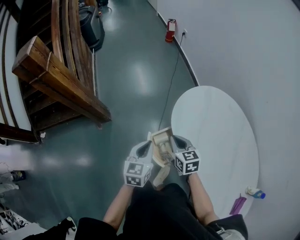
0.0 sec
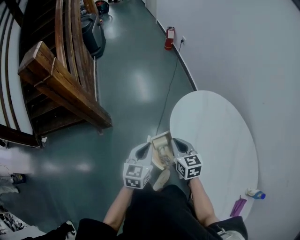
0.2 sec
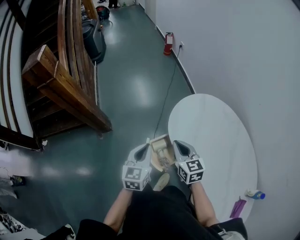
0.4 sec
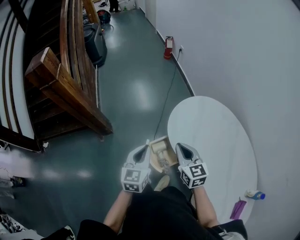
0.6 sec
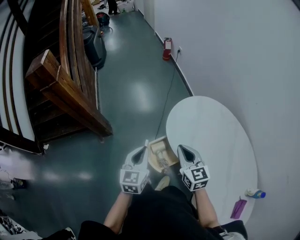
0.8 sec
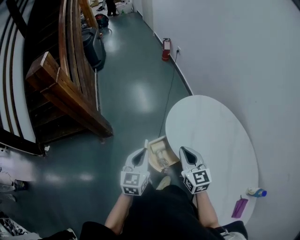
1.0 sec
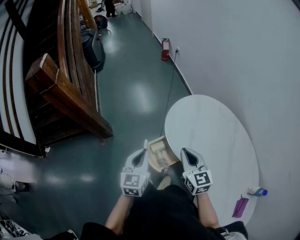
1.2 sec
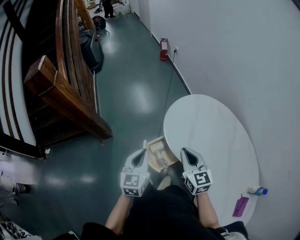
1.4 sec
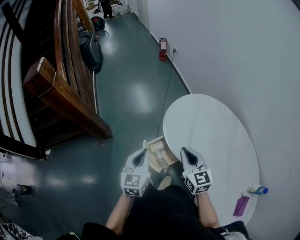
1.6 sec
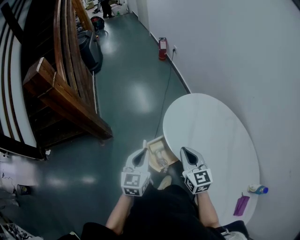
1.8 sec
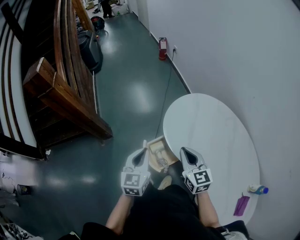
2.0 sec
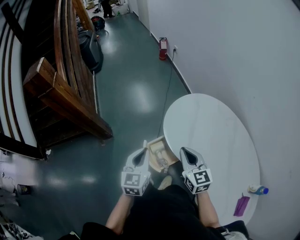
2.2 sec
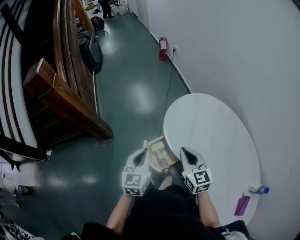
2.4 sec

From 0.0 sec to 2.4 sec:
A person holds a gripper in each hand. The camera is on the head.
From 0.0 sec to 1.2 sec: The left gripper heads upward and backward, covering roughly 10 cm. Meanwhile the right gripper goes approximately 15 cm upward, backward and to the right, and swivels about 20 degrees.
From 1.2 sec to 2.4 sec: There are only small adjustments of the grippers.

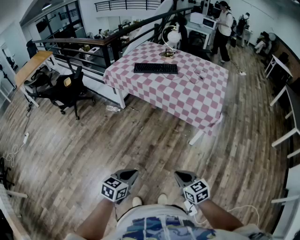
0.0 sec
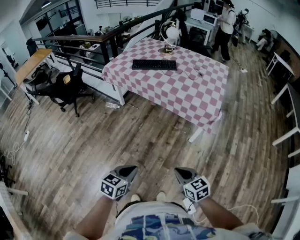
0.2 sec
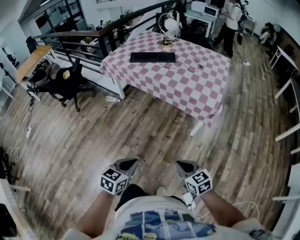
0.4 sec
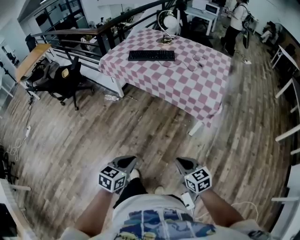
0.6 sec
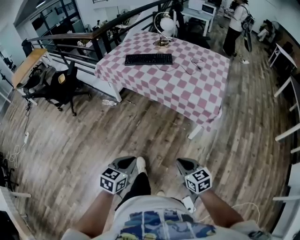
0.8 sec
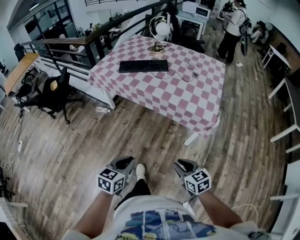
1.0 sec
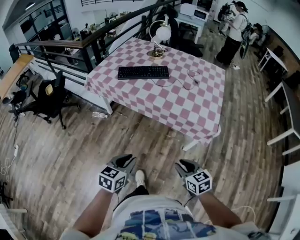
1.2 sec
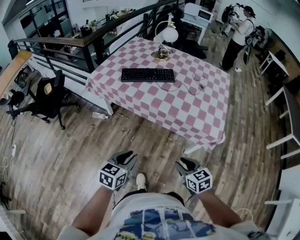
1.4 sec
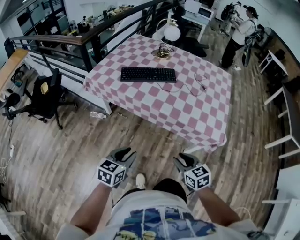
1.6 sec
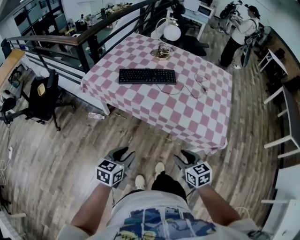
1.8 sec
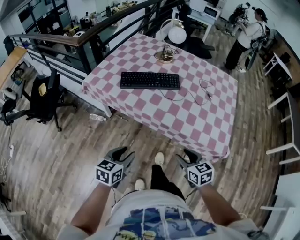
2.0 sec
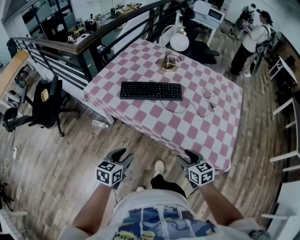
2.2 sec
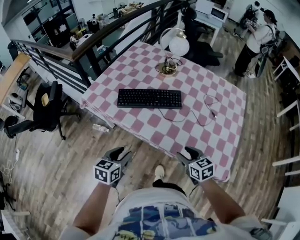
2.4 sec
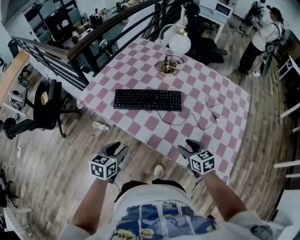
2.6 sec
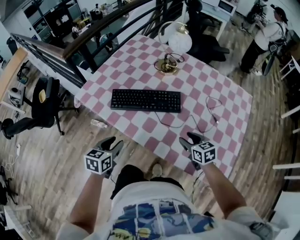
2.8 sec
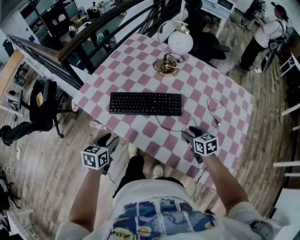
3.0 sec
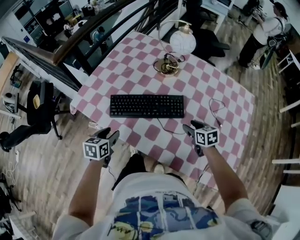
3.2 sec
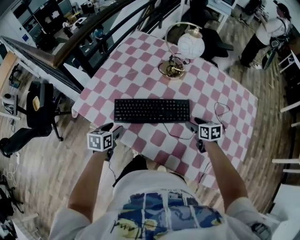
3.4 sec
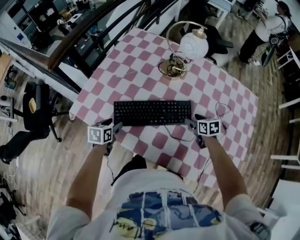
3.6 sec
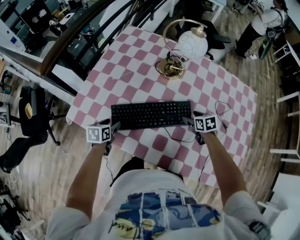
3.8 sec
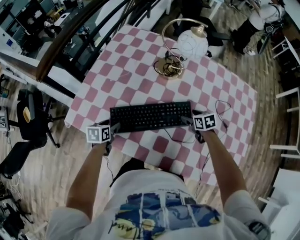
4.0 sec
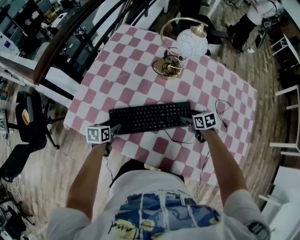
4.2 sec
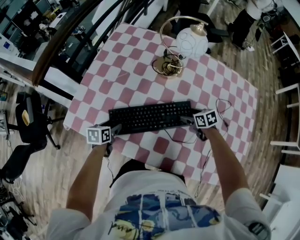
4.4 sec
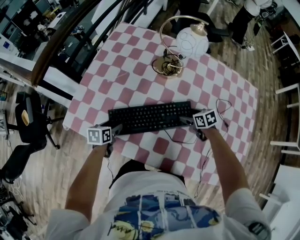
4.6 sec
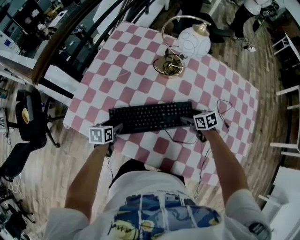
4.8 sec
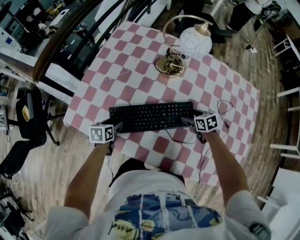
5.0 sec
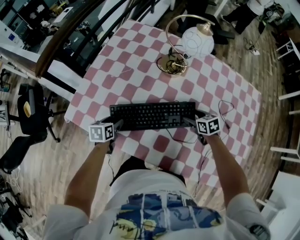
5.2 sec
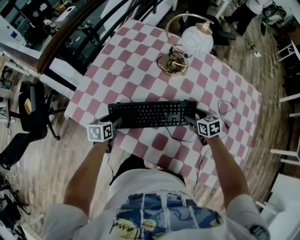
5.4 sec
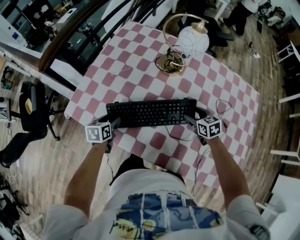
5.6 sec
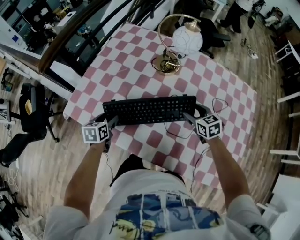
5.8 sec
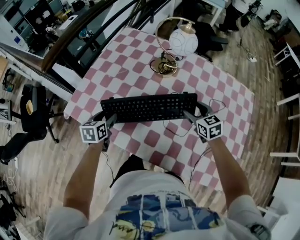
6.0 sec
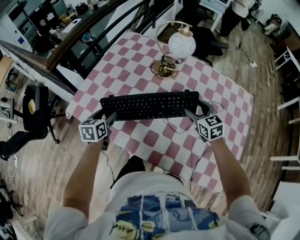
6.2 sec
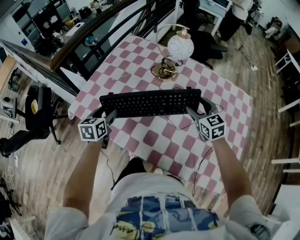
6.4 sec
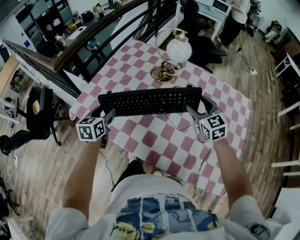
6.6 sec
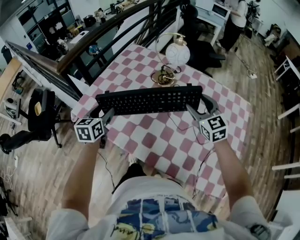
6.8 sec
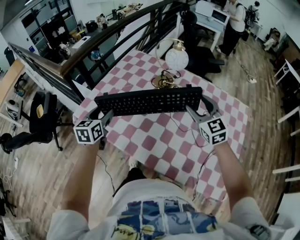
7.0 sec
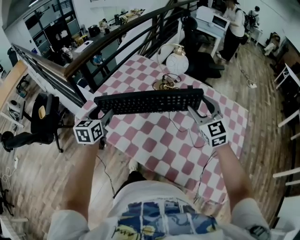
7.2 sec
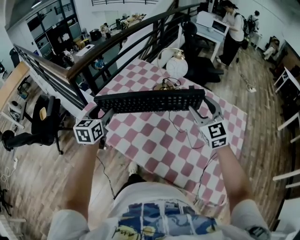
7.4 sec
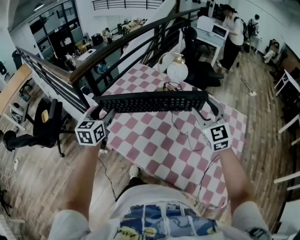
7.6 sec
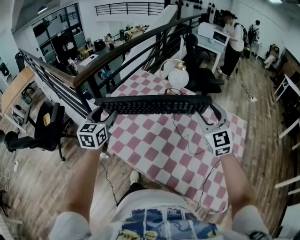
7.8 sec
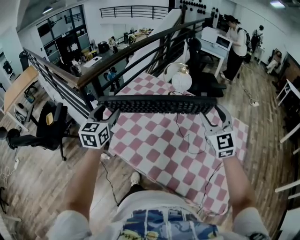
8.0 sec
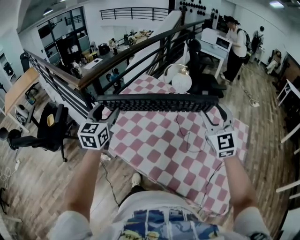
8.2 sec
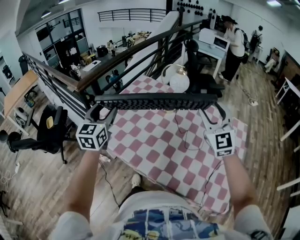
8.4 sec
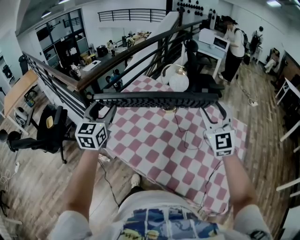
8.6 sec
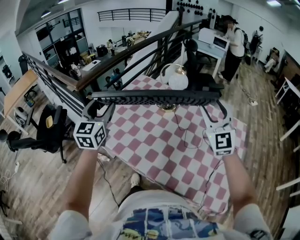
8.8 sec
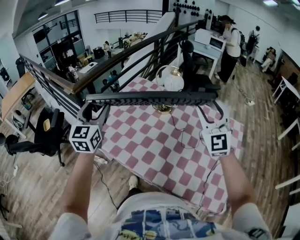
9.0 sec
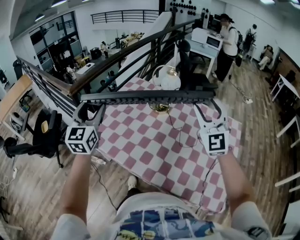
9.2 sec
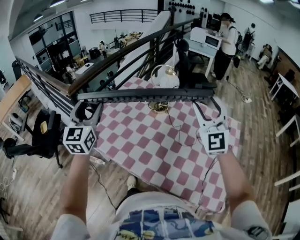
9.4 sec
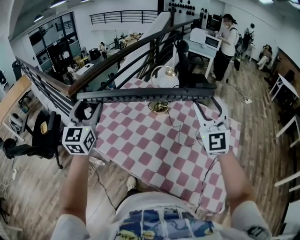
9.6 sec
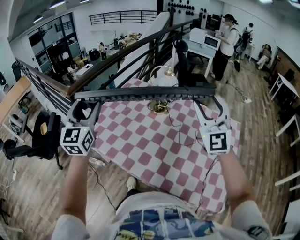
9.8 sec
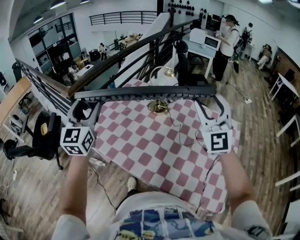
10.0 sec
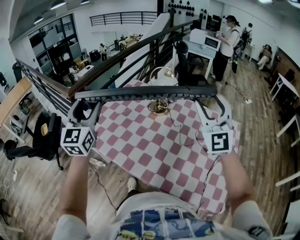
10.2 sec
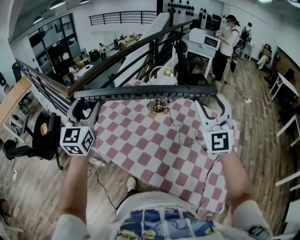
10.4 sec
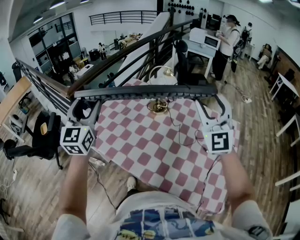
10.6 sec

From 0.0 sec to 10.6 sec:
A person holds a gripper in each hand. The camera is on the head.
From 0.0 sec to 1.6 sec: The two grippers go about 40 cm forward. The right gripper opens up.
From 1.6 sec to 3.0 sec: The two grippers travel together, forward, some 50 cm. The left gripper swivels approximately 20 degrees.
From 3.0 sec to 4.6 sec: The two grippers go approximately 25 cm forward and downward. The left gripper turns by some 20 degrees, and opens up. Meanwhile the right gripper opens up.
From 4.6 sec to 6.0 sec: Both grippers travel together upward, approximately 10 cm. The right gripper turns by approximately 30 degrees.
From 6.0 sec to 7.6 sec: Both grippers travel together upward, about 25 cm. The right gripper rotates some 40 degrees. Meanwhile the left gripper turns by roughly 30 degrees.
From 7.6 sec to 9.0 sec: The two grippers go some 10 cm upward. The left gripper rotates some 20 degrees.
From 9.0 sec to 10.6 sec: The left gripper is displaced upward by some 5 cm.

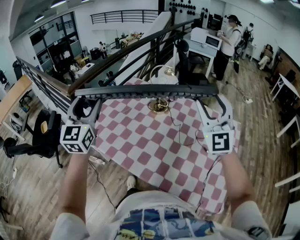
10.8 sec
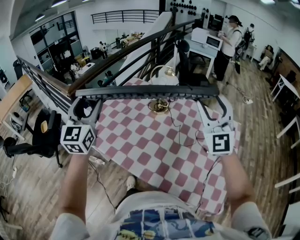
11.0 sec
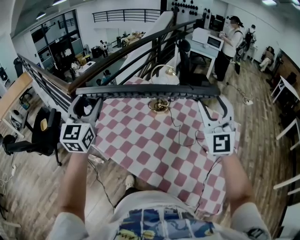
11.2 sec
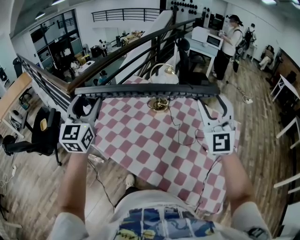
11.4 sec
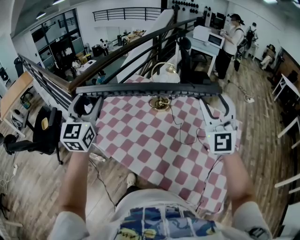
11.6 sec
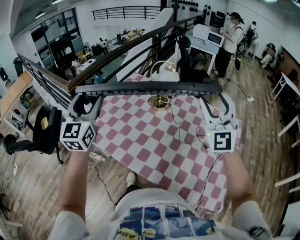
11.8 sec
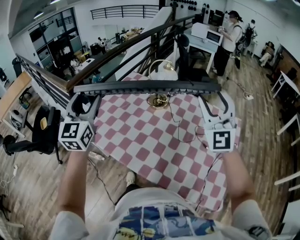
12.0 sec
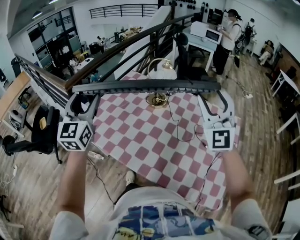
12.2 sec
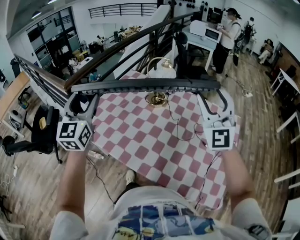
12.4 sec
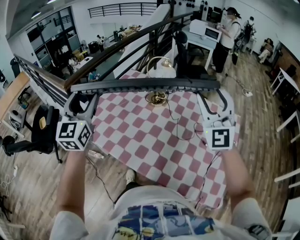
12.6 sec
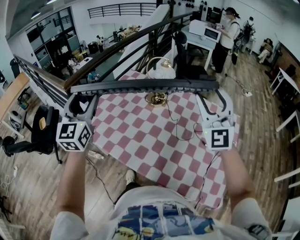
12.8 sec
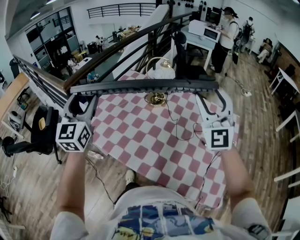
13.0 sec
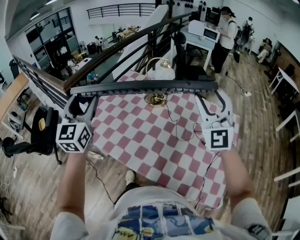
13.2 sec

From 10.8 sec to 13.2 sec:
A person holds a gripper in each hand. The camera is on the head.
From 10.8 sec to 12.0 sec: The two grippers keep their place.
From 12.0 sec to 13.2 sec: Neither gripper changes place.

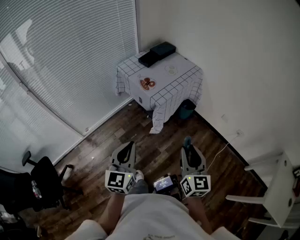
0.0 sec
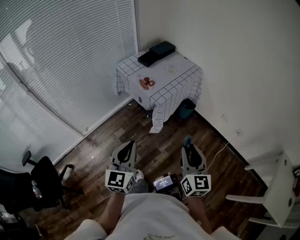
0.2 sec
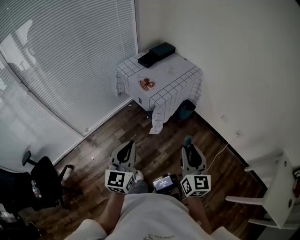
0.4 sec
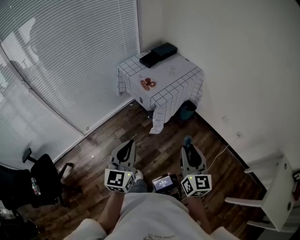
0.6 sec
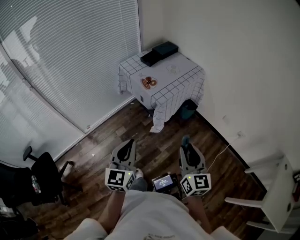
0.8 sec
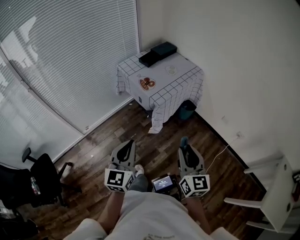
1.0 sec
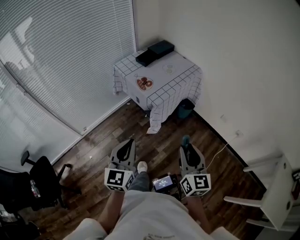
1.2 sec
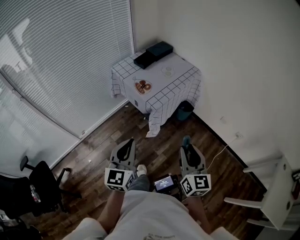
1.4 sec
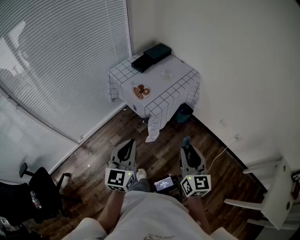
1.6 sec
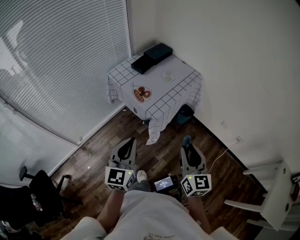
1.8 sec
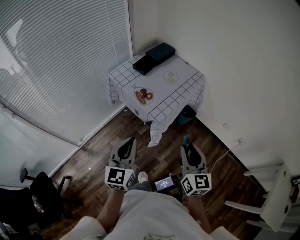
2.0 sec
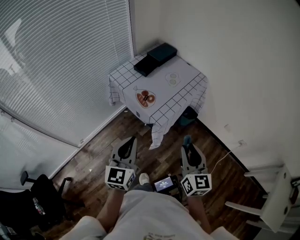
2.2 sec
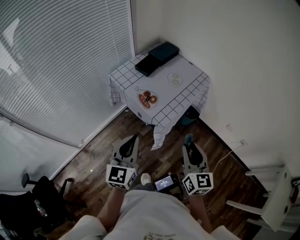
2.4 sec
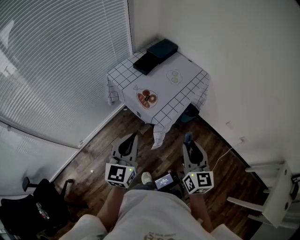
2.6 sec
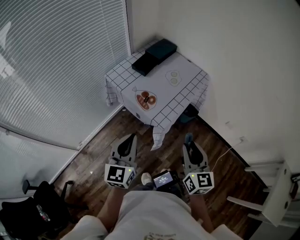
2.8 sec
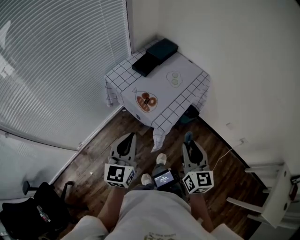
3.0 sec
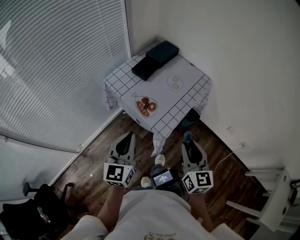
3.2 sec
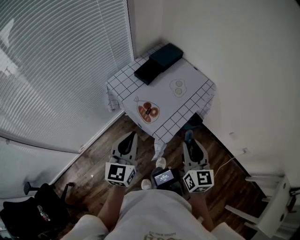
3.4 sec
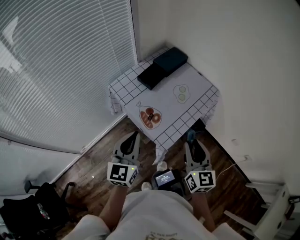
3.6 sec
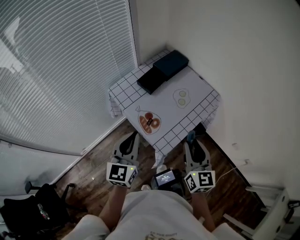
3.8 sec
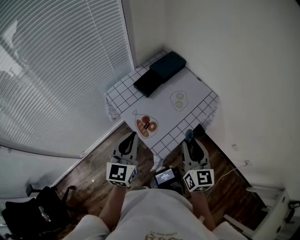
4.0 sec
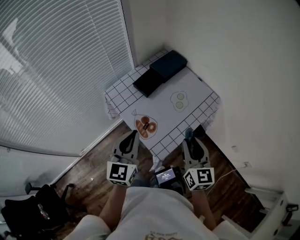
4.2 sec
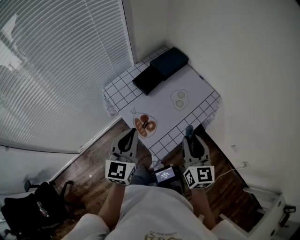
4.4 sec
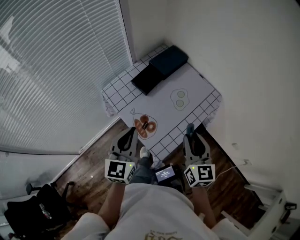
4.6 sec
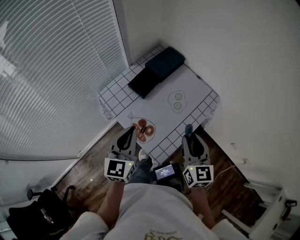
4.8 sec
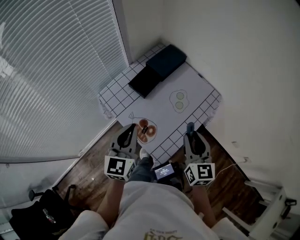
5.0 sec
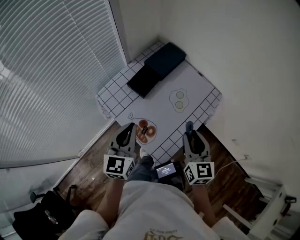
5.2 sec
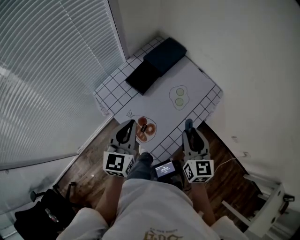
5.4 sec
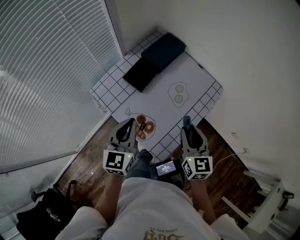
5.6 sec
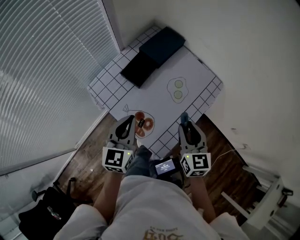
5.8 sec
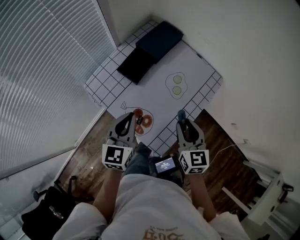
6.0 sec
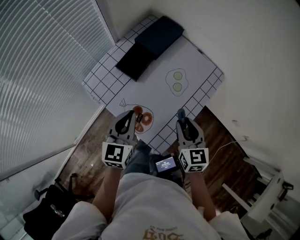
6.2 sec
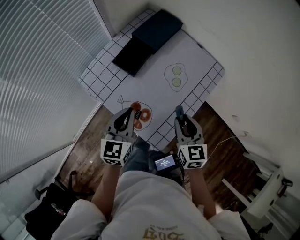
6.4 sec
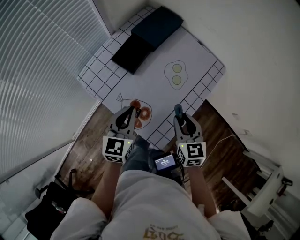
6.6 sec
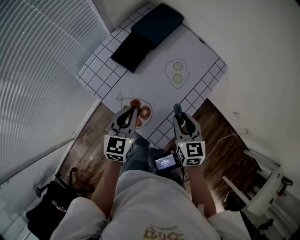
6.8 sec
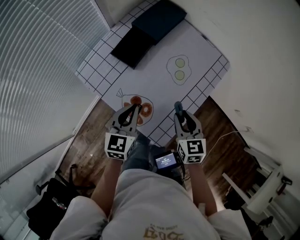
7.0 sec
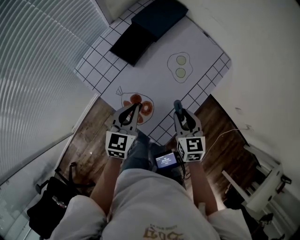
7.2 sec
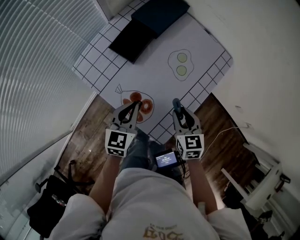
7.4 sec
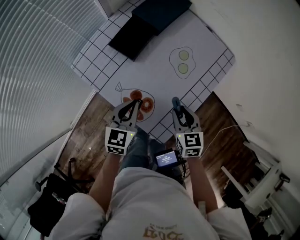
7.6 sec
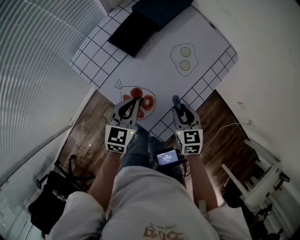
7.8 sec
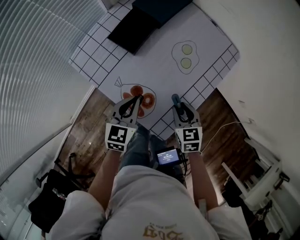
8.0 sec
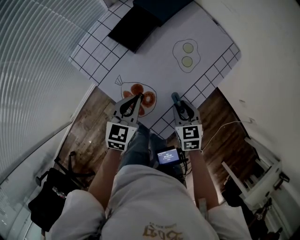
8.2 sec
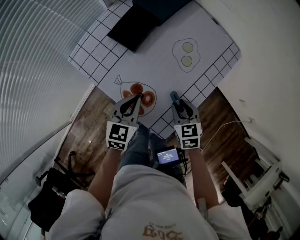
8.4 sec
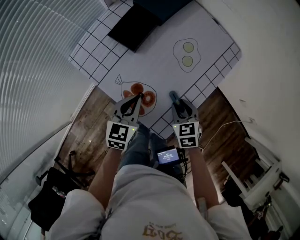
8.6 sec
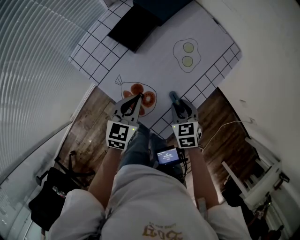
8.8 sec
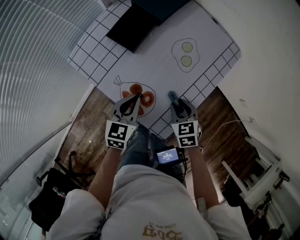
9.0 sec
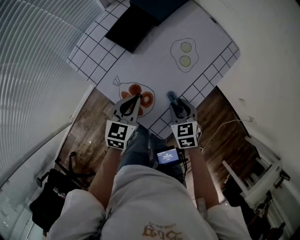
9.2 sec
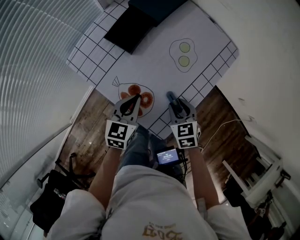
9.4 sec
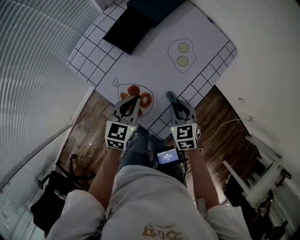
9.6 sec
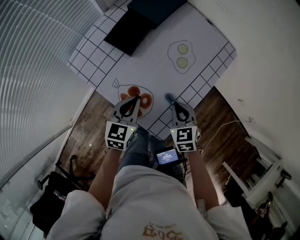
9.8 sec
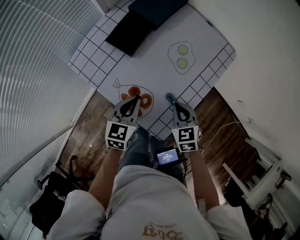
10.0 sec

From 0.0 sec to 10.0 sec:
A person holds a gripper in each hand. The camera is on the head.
From 0.0 sec to 1.4 sec: Both grippers travel together forward, some 5 cm.
From 1.4 sec to 2.8 sec: The right gripper travels forward and to the left by some 20 cm. The left gripper heads forward, covering about 20 cm.
From 2.8 sec to 4.2 sec: Both grippers move forward, about 20 cm.
From 4.2 sec to 5.8 sec: The grippers both shift forward and downward by about 15 cm.
From 5.8 sec to 7.2 sec: Both grippers move downward, some 10 cm.
From 7.2 sec to 8.6 sec: The right gripper heads downward, covering some 10 cm. Meanwhile the left gripper shifts about 5 cm downward.
From 8.6 sec to 10.0 sec: The right gripper closes.
